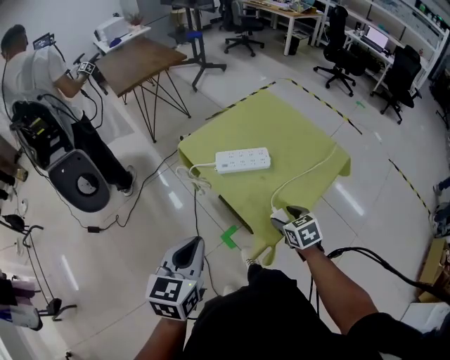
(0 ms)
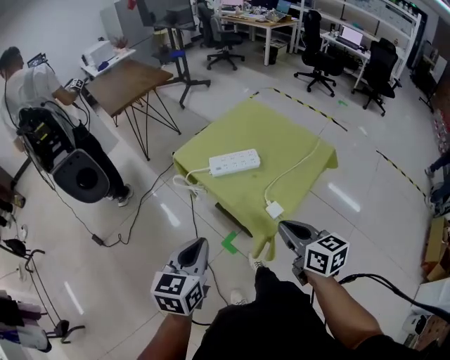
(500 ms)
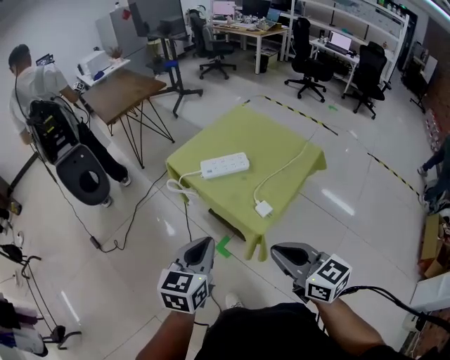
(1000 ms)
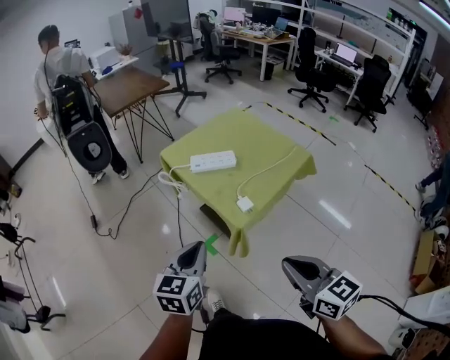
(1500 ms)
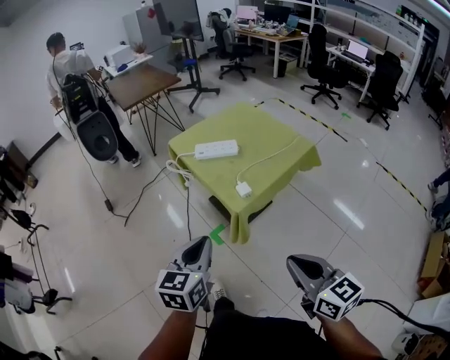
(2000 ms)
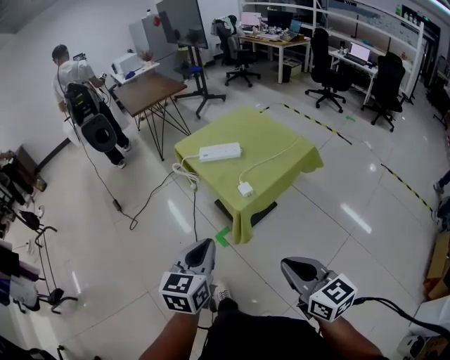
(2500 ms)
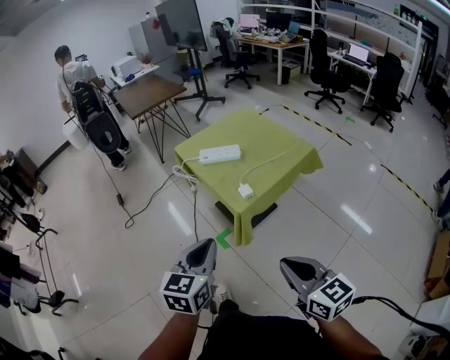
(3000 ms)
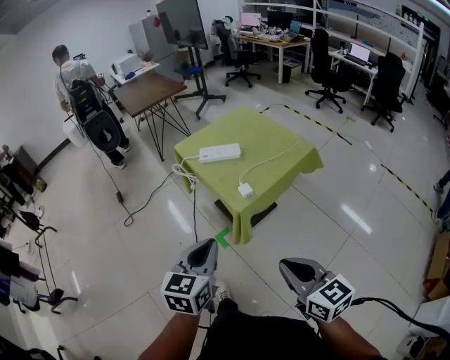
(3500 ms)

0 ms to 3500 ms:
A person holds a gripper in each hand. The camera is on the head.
0 ms to 2000 ms: The right gripper is displaced backward and upward by about 40 cm, tips its fingers upward by about 30 degrees, and closes up; the left gripper travels backward and to the right by some 25 cm.
2000 ms to 3500 ms: The grippers move only a little.

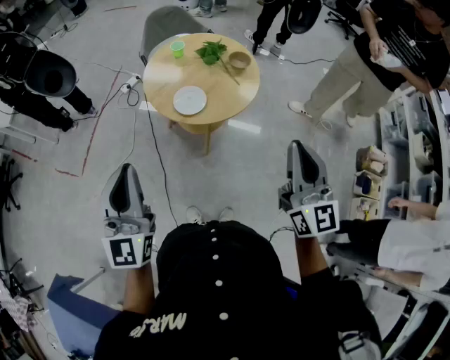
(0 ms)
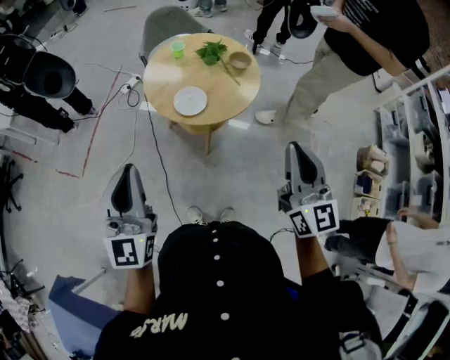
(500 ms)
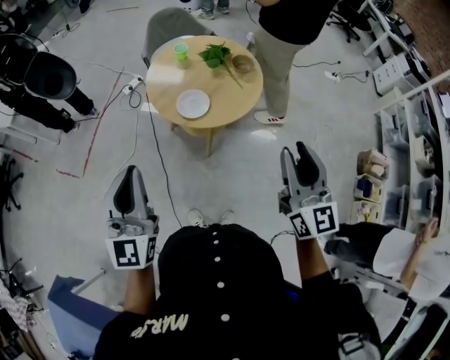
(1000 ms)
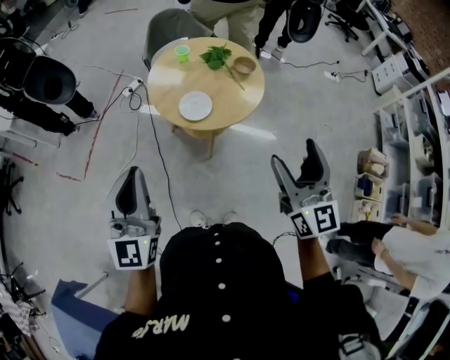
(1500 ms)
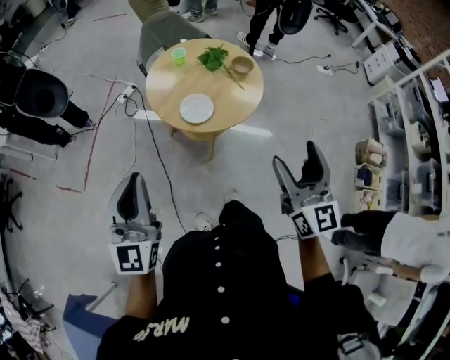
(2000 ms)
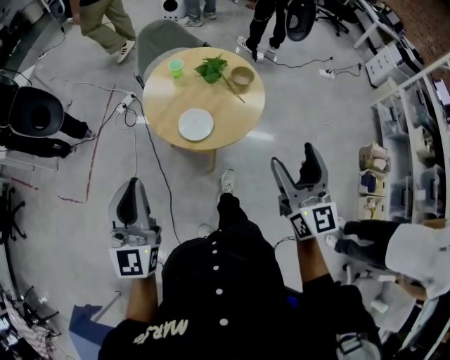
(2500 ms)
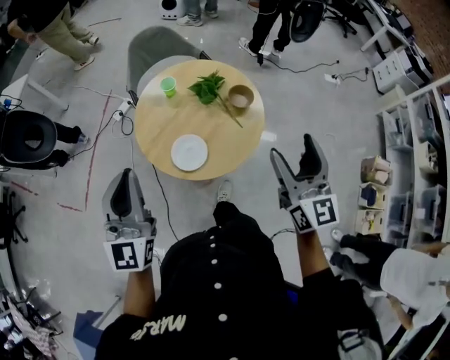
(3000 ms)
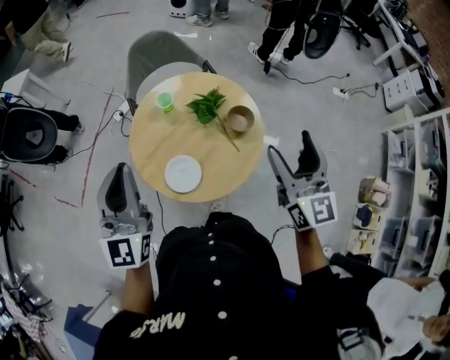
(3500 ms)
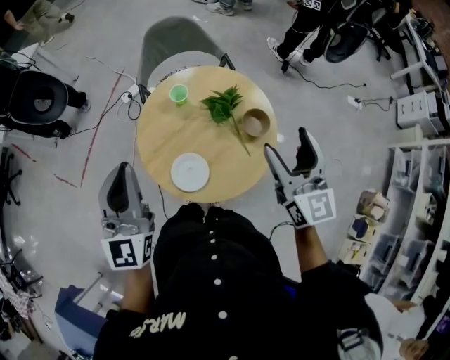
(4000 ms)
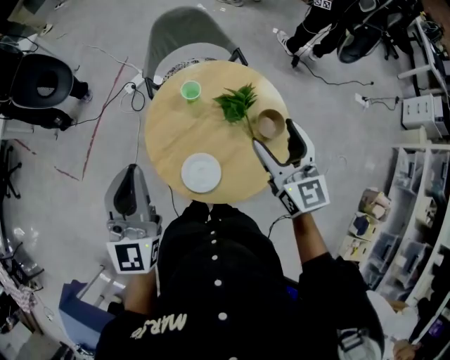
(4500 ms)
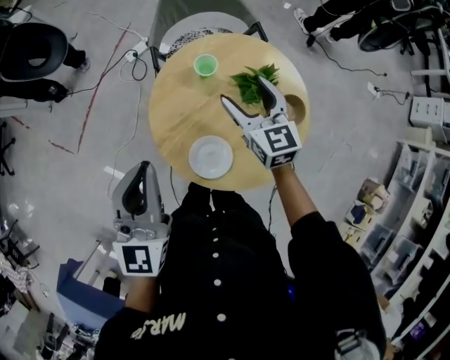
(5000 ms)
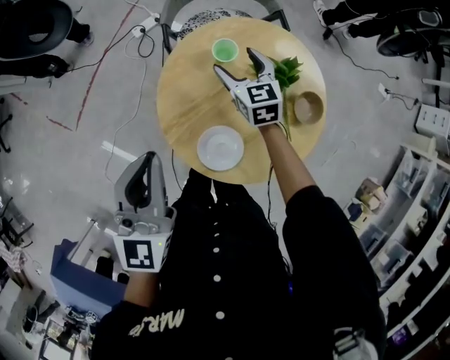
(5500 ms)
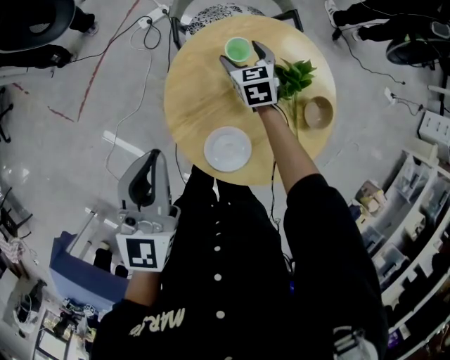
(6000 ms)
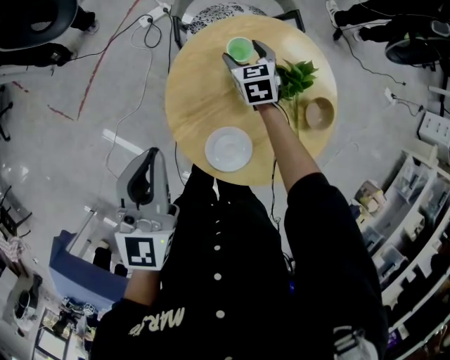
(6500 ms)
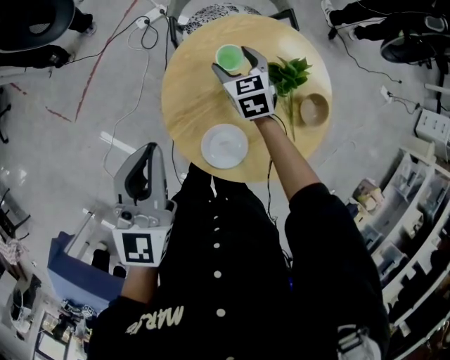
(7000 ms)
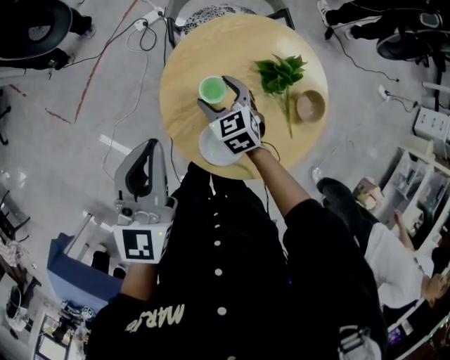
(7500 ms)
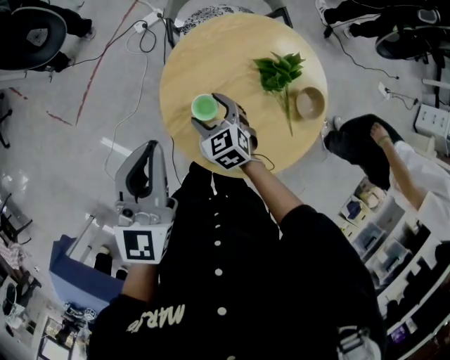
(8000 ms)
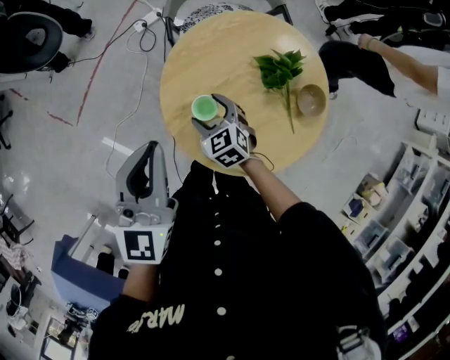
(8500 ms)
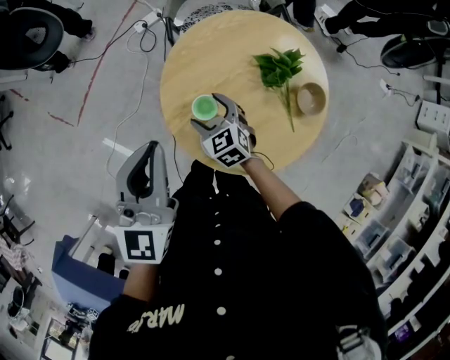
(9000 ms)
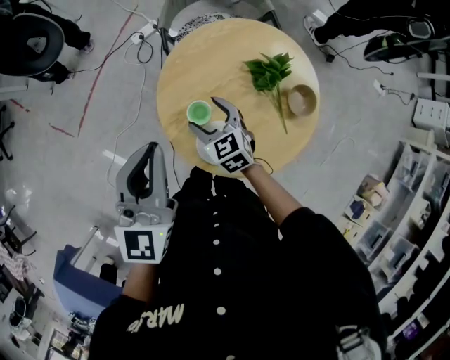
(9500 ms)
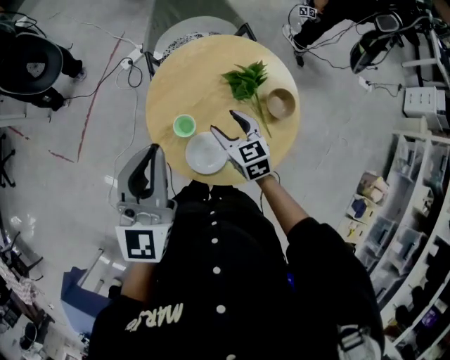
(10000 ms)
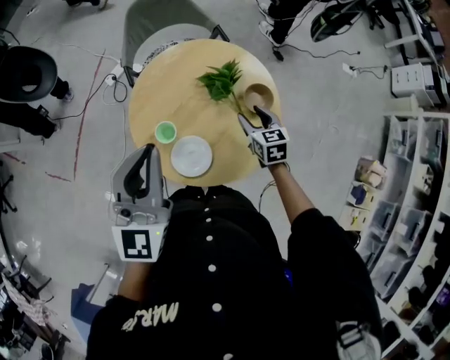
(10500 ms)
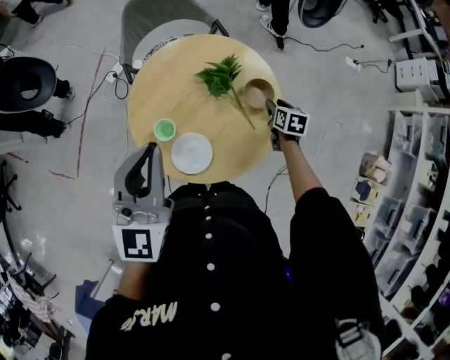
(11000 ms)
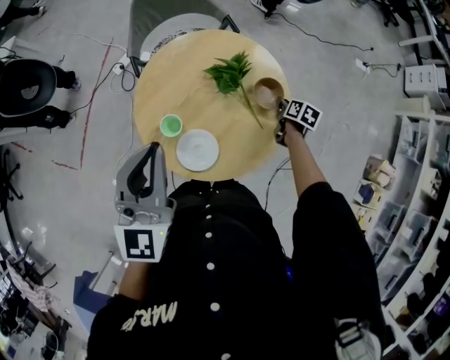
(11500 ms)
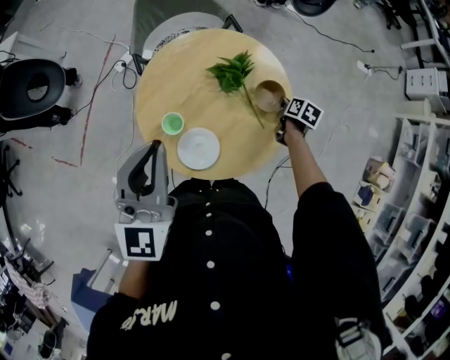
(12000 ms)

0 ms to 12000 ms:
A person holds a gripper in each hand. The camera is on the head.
0 ms to 2000 ms: Both grippers travel together to the left, about 5 cm. The right gripper opens its fingers.
2000 ms to 4000 ms: The grippers both shift forward by approximately 40 cm.
4000 ms to 6000 ms: The right gripper travels downward, forward and to the left by roughly 50 cm, and points its fingers approximately 40 degrees further downward; the left gripper goes some 15 cm downward, forward and to the left.
6000 ms to 8000 ms: The right gripper shifts roughly 20 cm backward and to the left.
8000 ms to 10000 ms: The left gripper is displaced upward and to the right by about 10 cm, while the right gripper shifts about 15 cm to the right and upward, and changes its angle by roughly 20 degrees.
10000 ms to 12000 ms: The left gripper heads to the right, covering about 5 cm, while the right gripper moves to the right, some 30 cm, rotates around the line of its fingers by about 50 degrees, clockwise from behind, and closes its fingers.

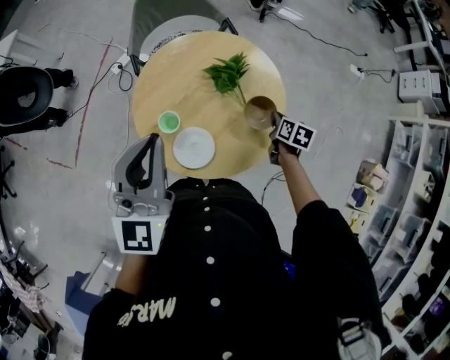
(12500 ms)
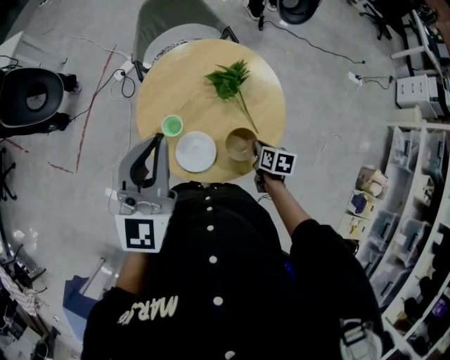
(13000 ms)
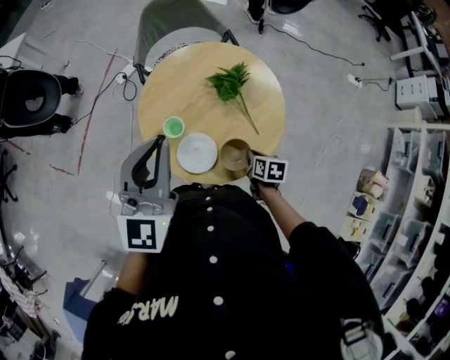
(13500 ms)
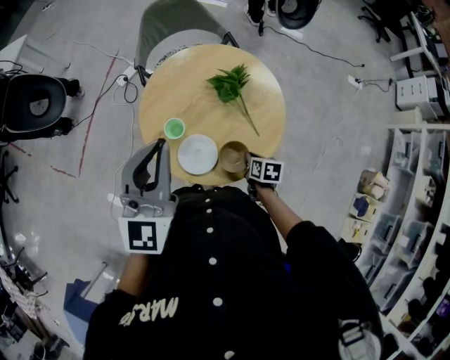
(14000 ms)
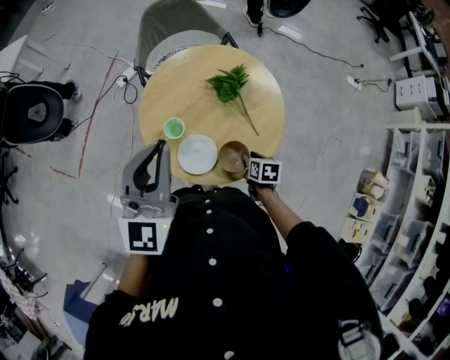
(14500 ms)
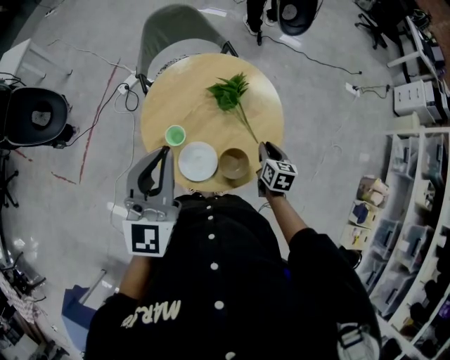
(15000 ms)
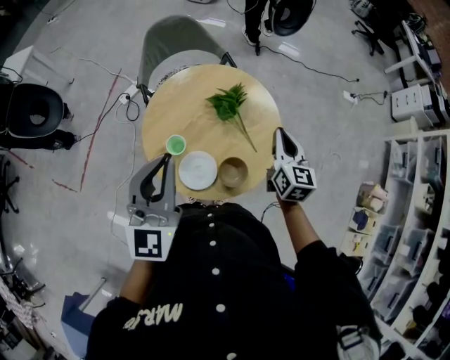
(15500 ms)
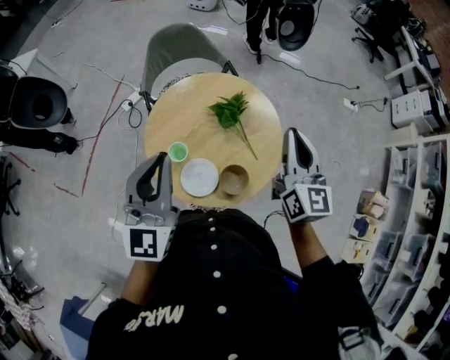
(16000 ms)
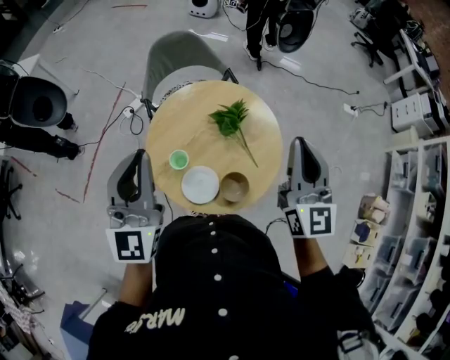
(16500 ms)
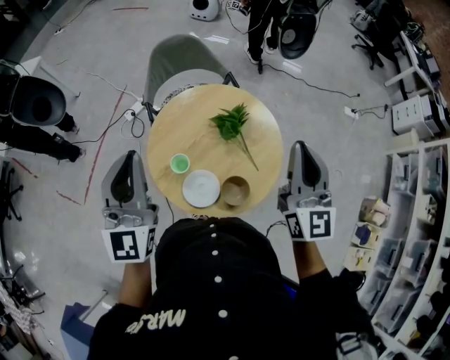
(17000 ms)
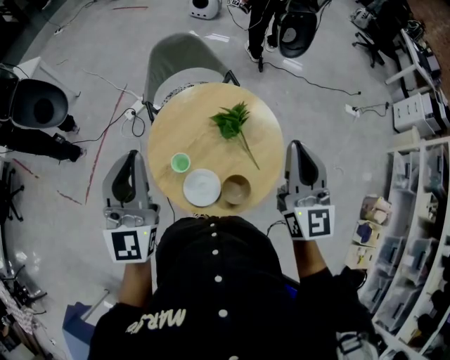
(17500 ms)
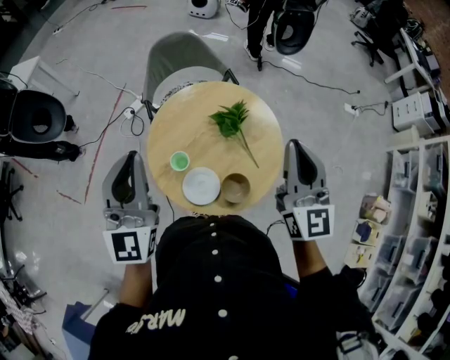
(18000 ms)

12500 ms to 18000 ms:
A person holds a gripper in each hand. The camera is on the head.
12500 ms to 14500 ms: The right gripper moves backward and to the left, about 15 cm.
14500 ms to 16000 ms: The right gripper is displaced upward by some 40 cm, and tilts its fingers roughly 60 degrees upward.
16000 ms to 18000 ms: The right gripper changes place by some 5 cm, while the left gripper moves to the left, approximately 5 cm.

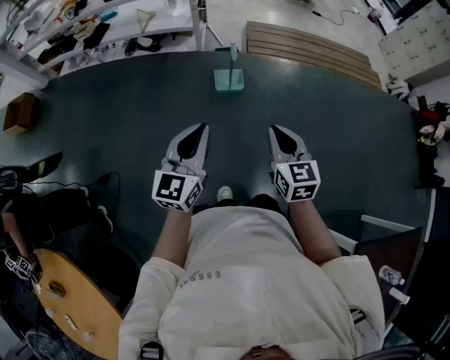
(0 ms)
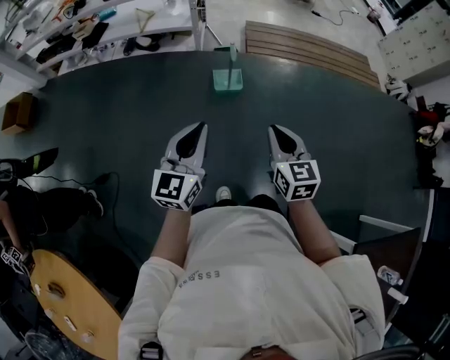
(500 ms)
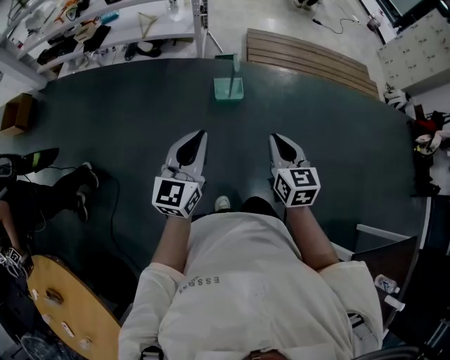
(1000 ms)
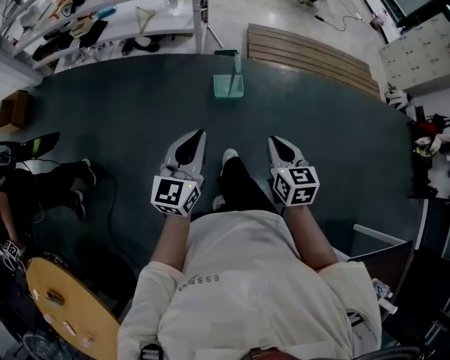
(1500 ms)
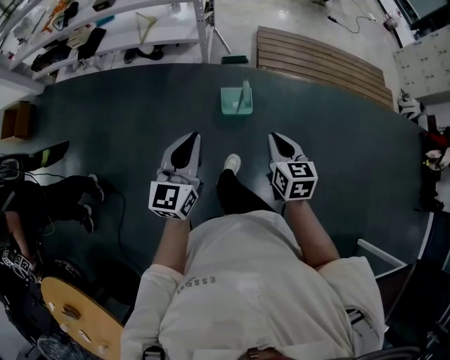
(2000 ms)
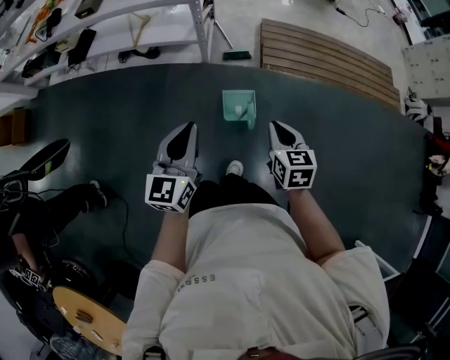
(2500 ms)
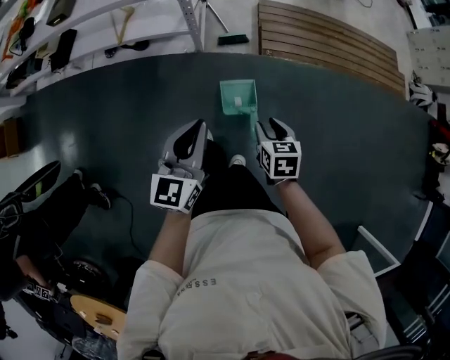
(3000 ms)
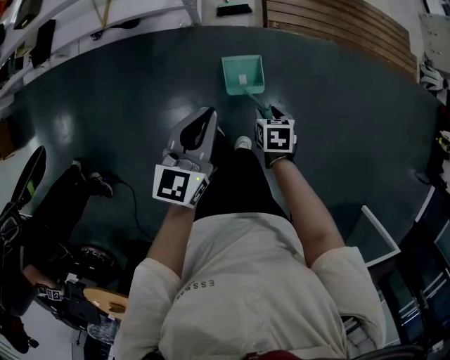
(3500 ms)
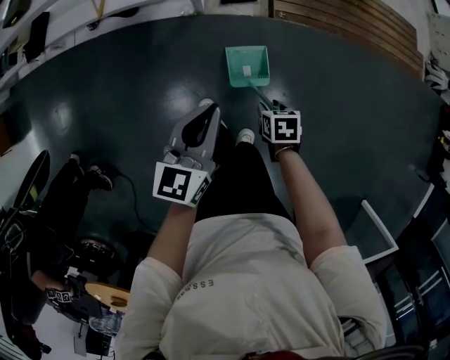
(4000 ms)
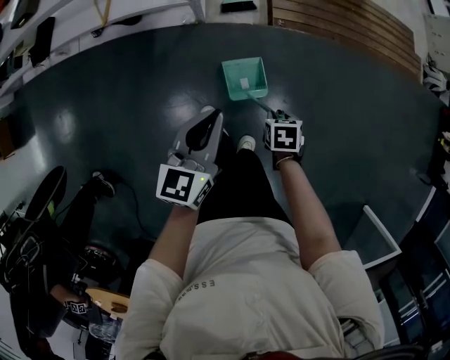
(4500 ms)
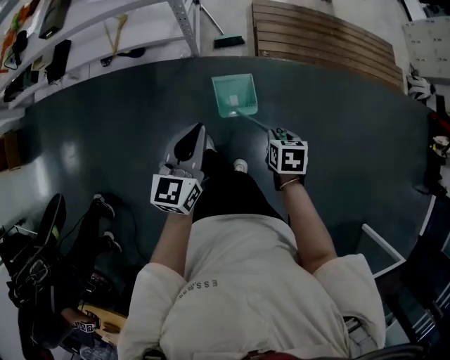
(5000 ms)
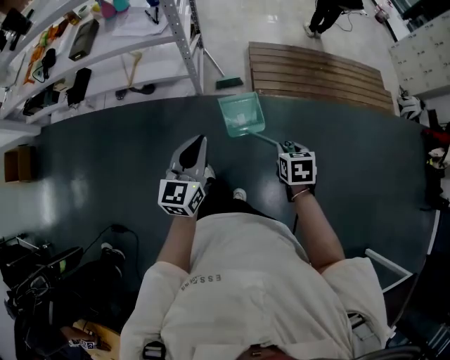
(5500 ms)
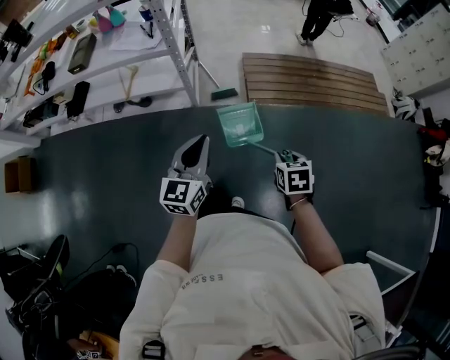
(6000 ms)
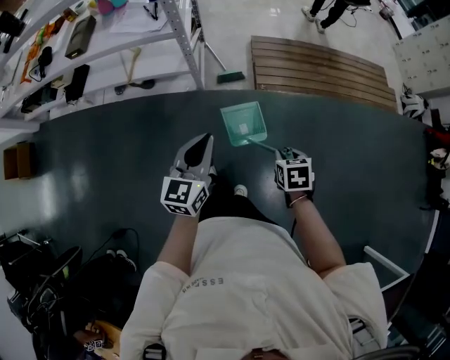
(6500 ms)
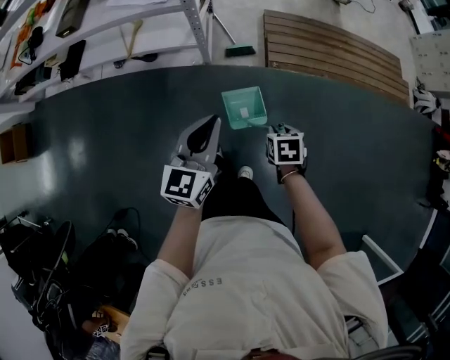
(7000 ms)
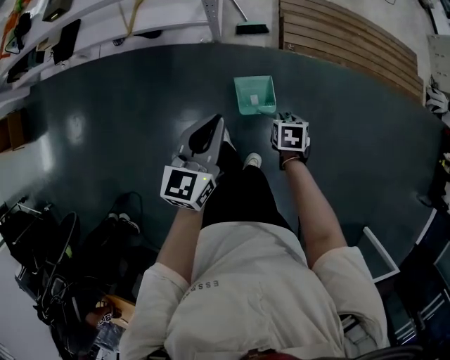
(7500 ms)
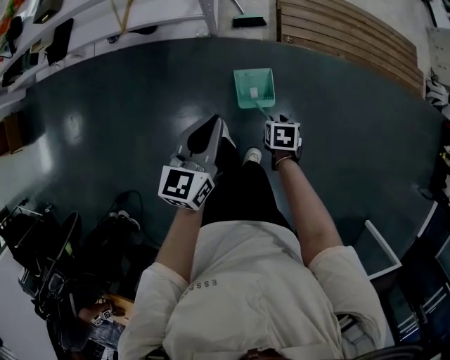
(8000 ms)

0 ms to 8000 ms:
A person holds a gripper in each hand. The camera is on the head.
0 ms to 2000 ms: Both grippers move forward, about 25 cm.
2000 ms to 4000 ms: The right gripper goes some 40 cm downward and forward, tilts its fingers some 40 degrees downward, and opens. The left gripper goes about 35 cm forward and downward.
4000 ms to 6000 ms: The left gripper travels upward by approximately 15 cm; the right gripper heads upward, covering roughly 25 cm, swivels roughly 20 degrees, and closes up.
6000 ms to 8000 ms: The right gripper heads downward, covering some 25 cm, and turns by some 20 degrees; the left gripper shifts roughly 15 cm downward.
